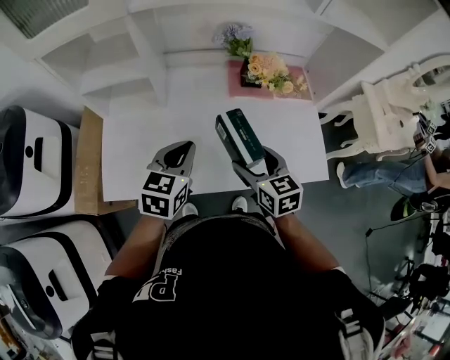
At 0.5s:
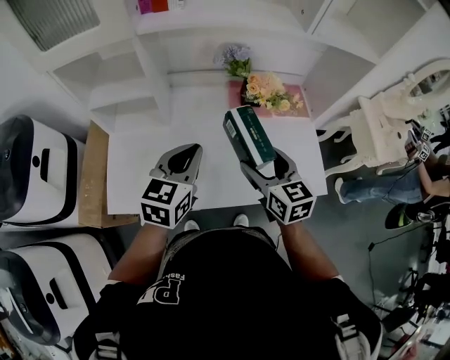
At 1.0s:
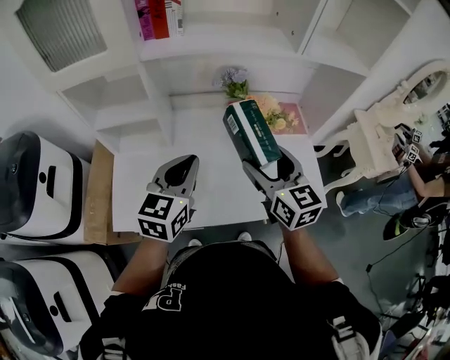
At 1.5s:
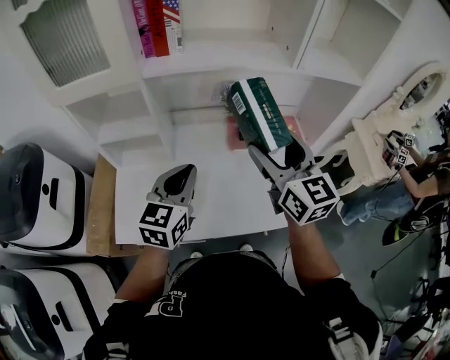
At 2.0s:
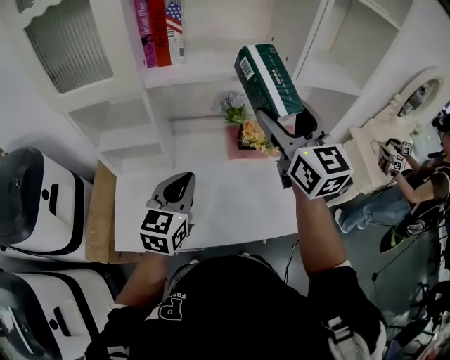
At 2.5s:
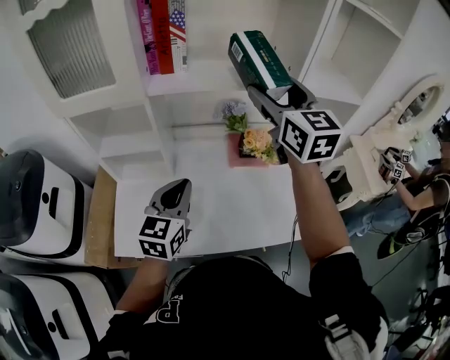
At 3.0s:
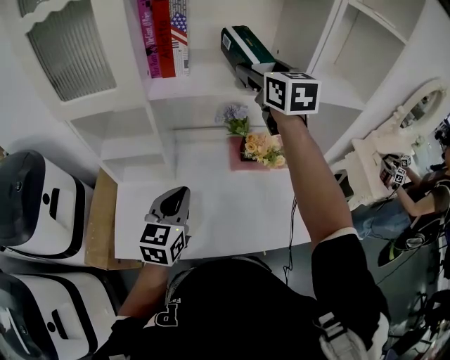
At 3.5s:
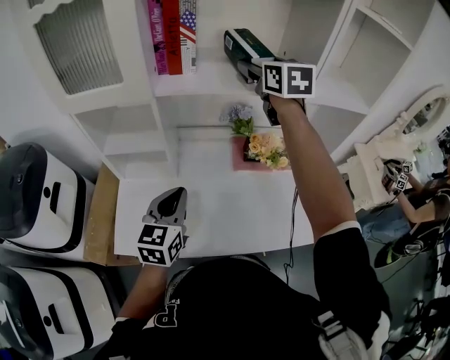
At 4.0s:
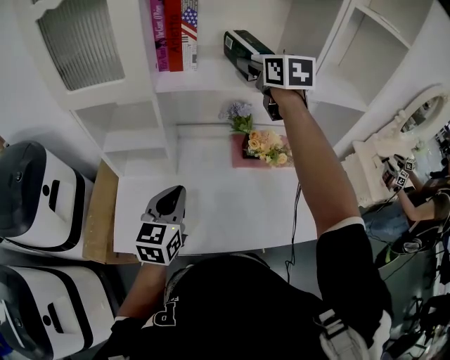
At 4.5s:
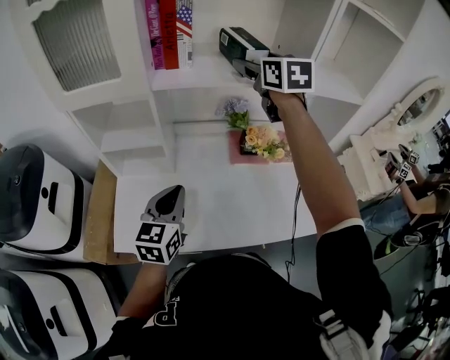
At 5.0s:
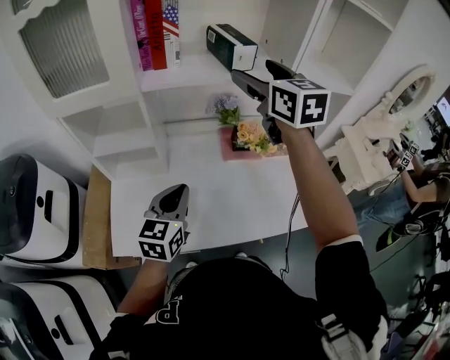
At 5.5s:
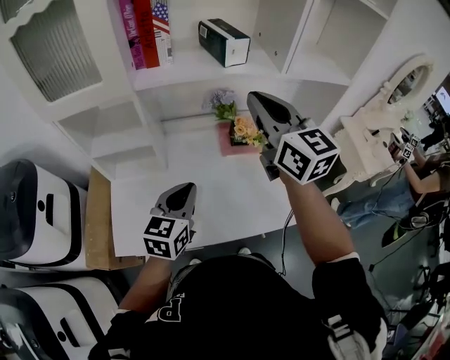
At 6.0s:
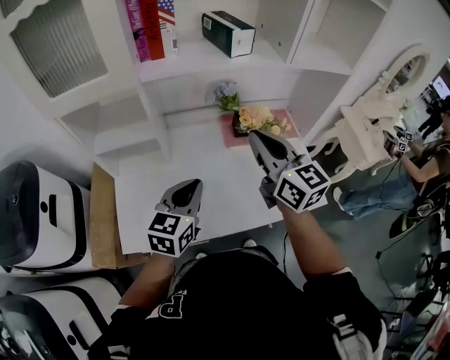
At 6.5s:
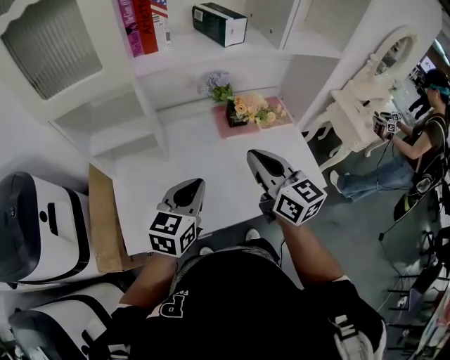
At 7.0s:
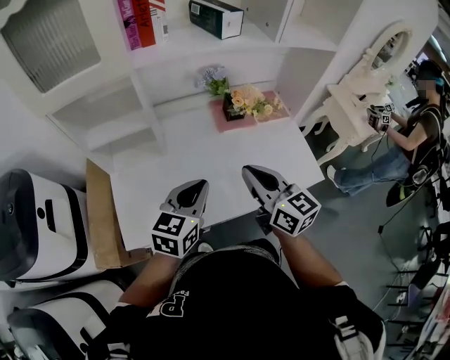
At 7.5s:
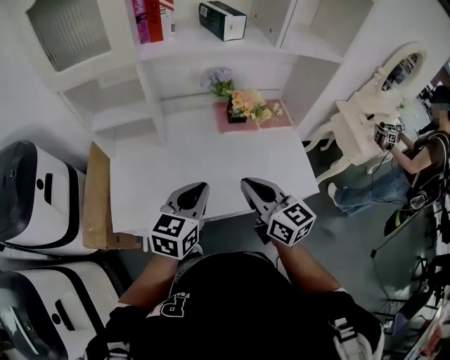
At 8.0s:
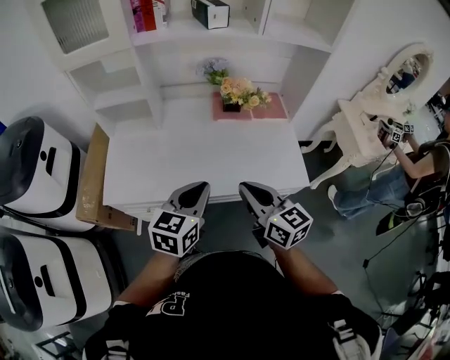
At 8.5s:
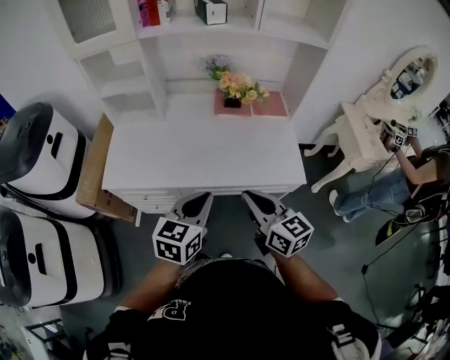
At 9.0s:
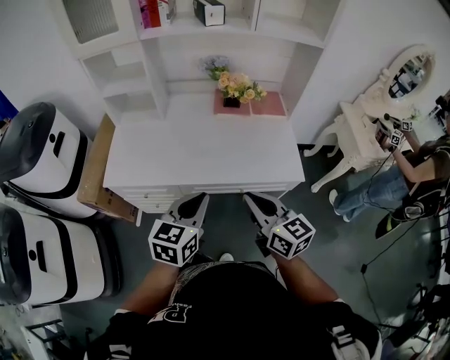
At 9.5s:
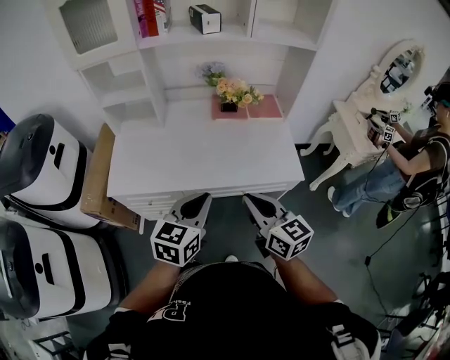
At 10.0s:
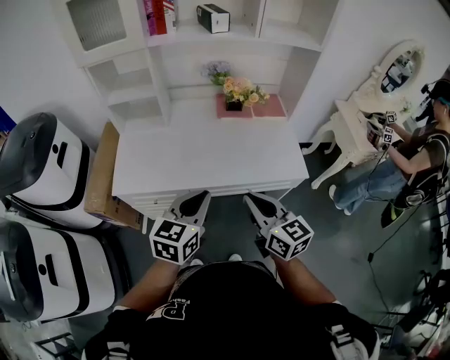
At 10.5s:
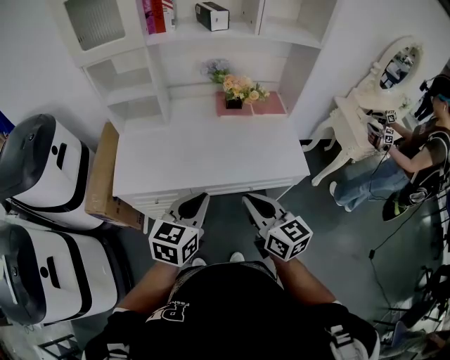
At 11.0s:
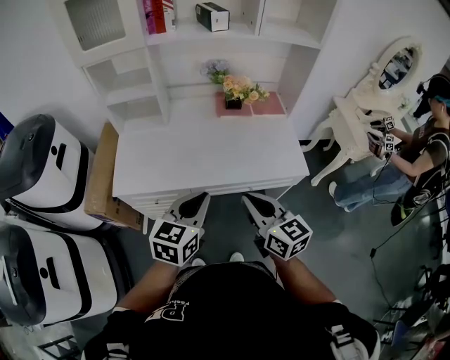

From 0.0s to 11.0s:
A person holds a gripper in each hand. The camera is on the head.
From 0.0s to 2.0s: The right gripper travels upward by roughly 35 cm, and tilts its fingers approximately 40 degrees upward, while the left gripper moves upward, some 10 cm.
From 2.0s to 3.5s: The right gripper moves forward, some 20 cm.
From 3.5s to 5.5s: The left gripper moves approximately 5 cm. Meanwhile the right gripper travels backward by about 20 cm, and closes.
From 5.5s to 7.5s: The right gripper moves backward and downward, about 30 cm, and rotates approximately 20 degrees; the left gripper shifts some 10 cm backward.
From 7.5s to 9.0s: Both grippers move backward and to the right, about 20 cm.
From 9.0s to 11.0s: The grippers both shift to the left by about 5 cm.

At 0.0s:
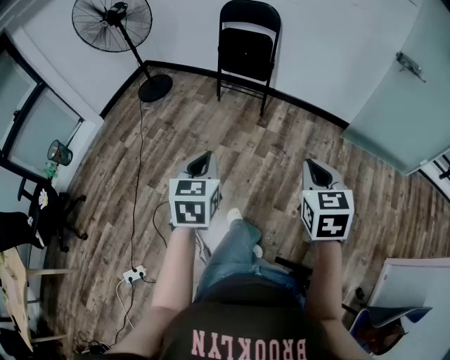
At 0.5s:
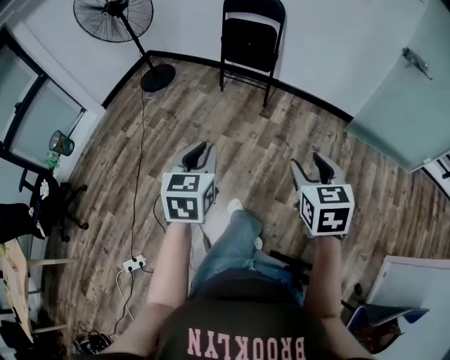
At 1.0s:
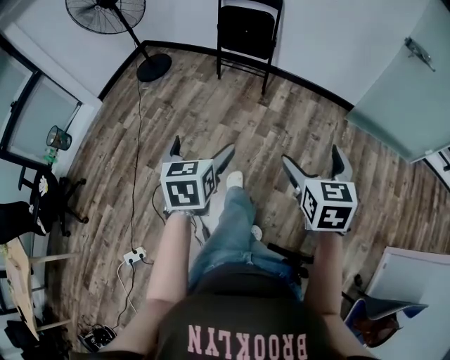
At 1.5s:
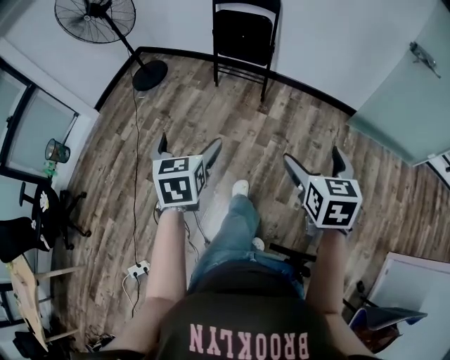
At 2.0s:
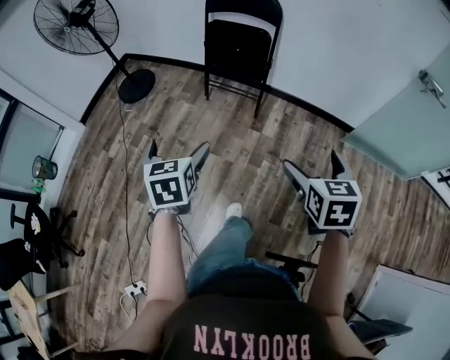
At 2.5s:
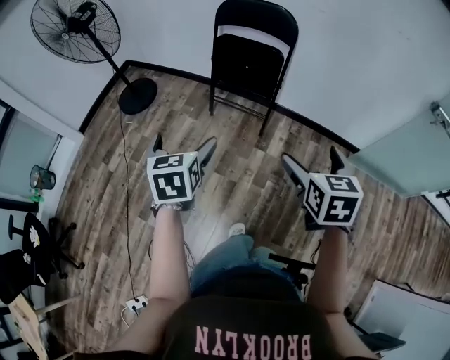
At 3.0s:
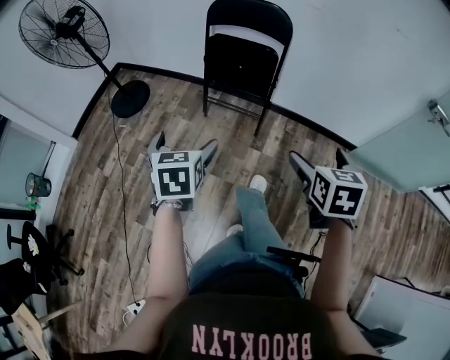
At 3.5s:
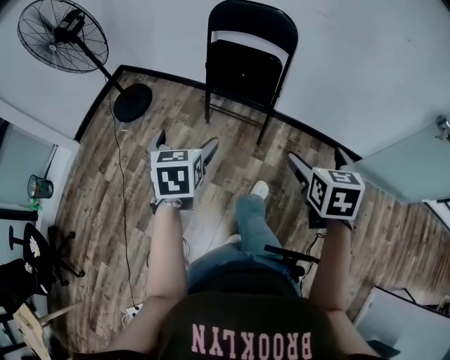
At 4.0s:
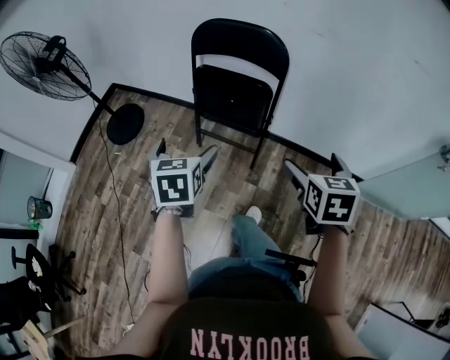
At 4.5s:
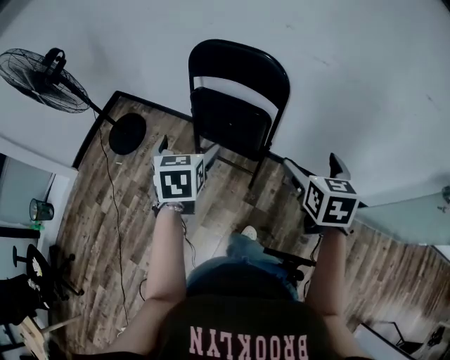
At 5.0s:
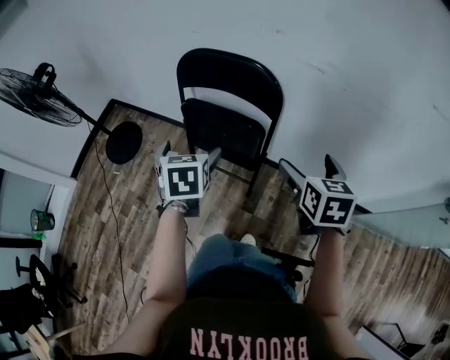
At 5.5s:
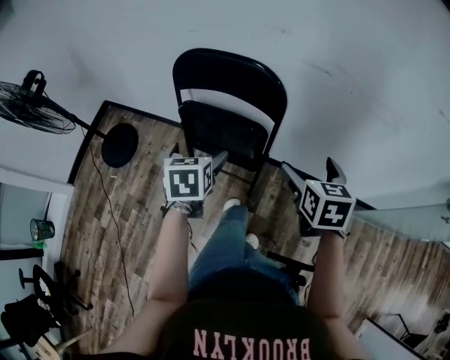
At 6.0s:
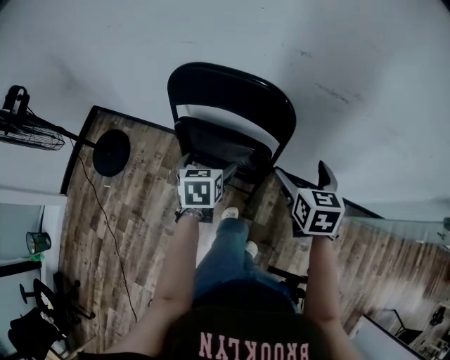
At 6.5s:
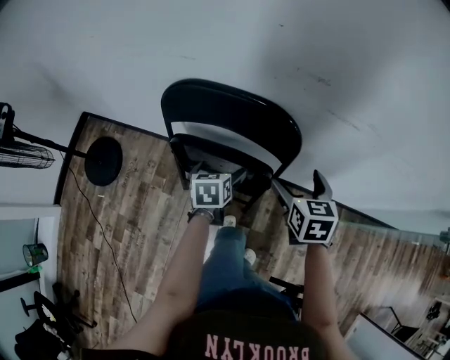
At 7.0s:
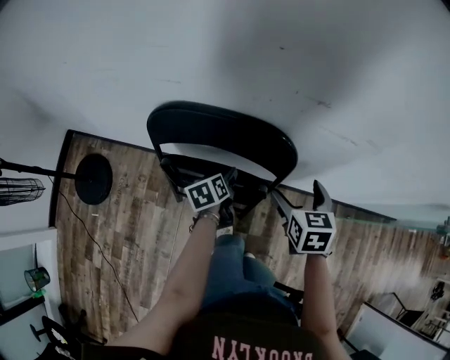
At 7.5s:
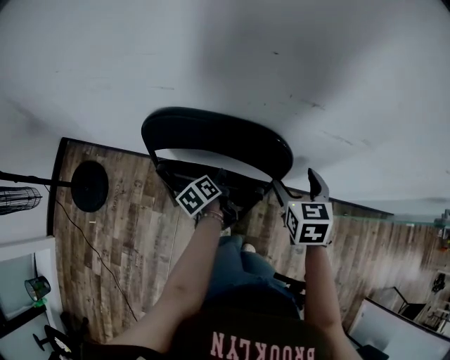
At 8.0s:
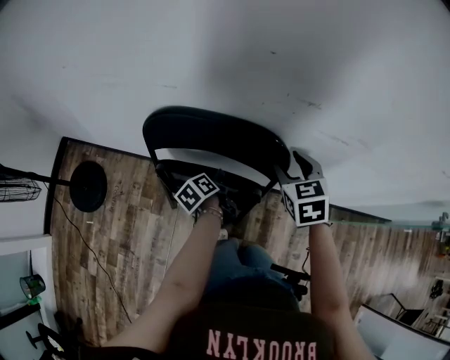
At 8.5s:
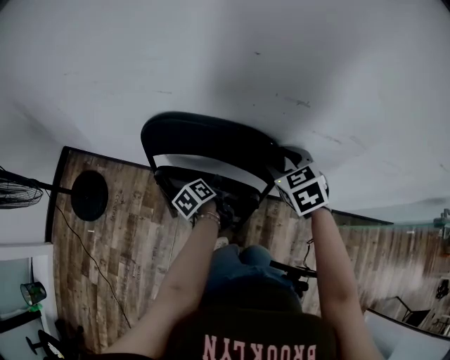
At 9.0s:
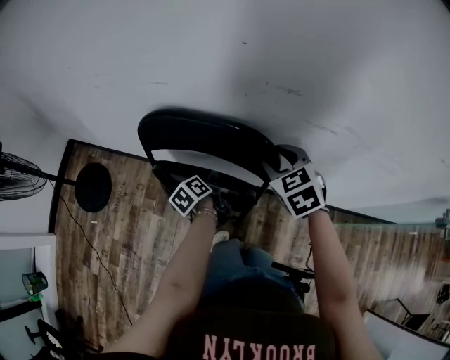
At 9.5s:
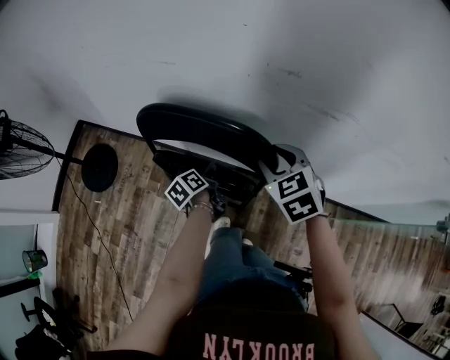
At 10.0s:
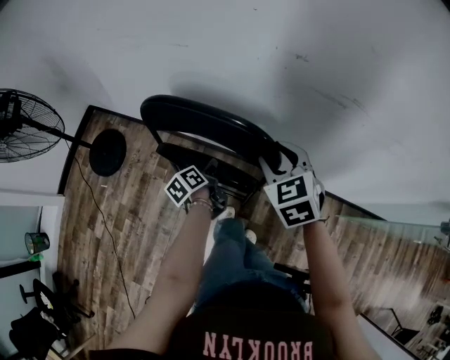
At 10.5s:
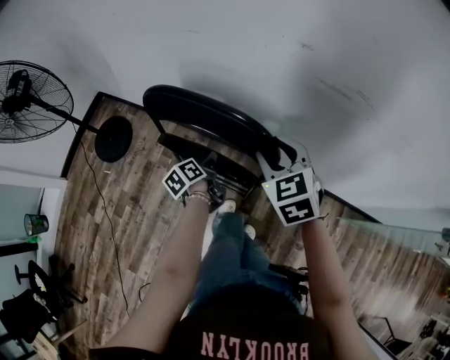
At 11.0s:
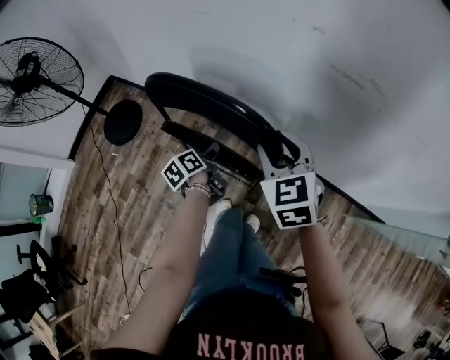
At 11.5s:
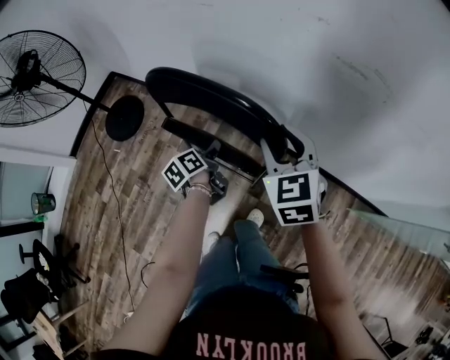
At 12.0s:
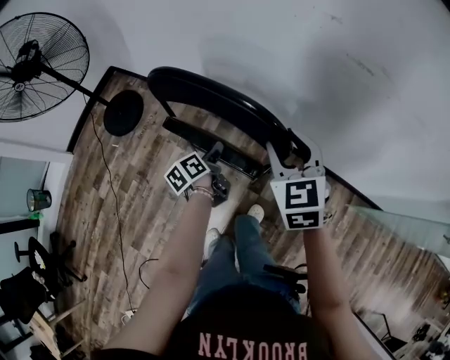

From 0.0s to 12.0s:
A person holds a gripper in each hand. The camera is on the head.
From 0.0s to 2.0s: Both grippers move forward, some 30 cm. The left gripper opens its fingers. Meanwhile the right gripper opens.
From 2.0s to 4.0s: The pair of grippers is taken forward, approximately 40 cm.
From 4.0s to 6.0s: Both grippers travel together forward, approximately 30 cm.
From 6.0s to 8.0s: The right gripper shifts approximately 15 cm forward, and closes its fingers; the left gripper shifts some 15 cm forward and downward, rotates around the line of its fingers by approximately 50 degrees, counterclockwise from behind, and closes.
From 8.0s to 10.0s: The two grippers go about 10 cm backward.
From 10.0s to 12.0s: The left gripper goes approximately 10 cm backward and to the left. Meanwhile the right gripper is displaced backward by approximately 10 cm.

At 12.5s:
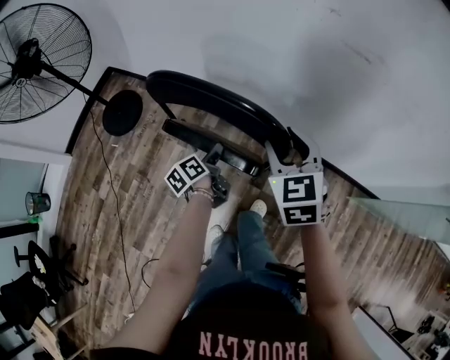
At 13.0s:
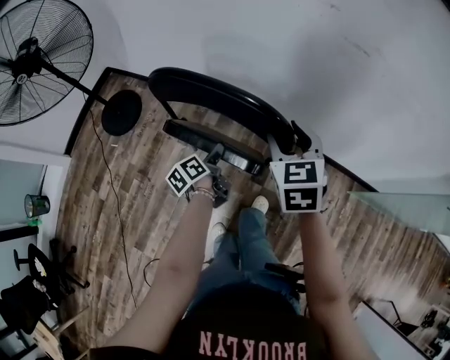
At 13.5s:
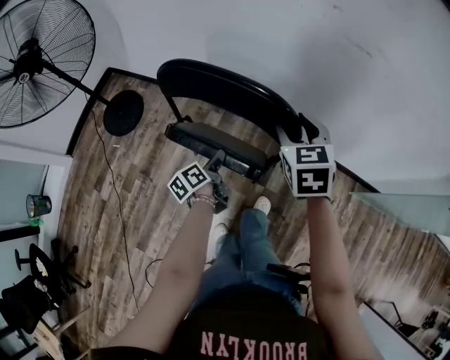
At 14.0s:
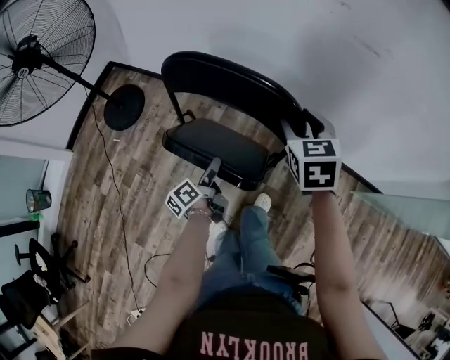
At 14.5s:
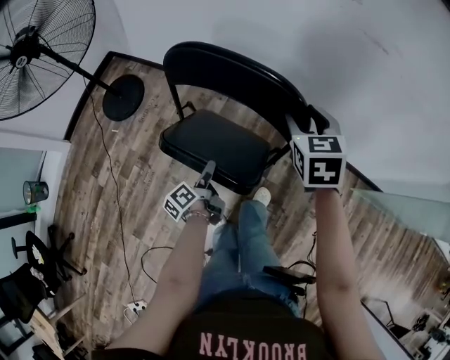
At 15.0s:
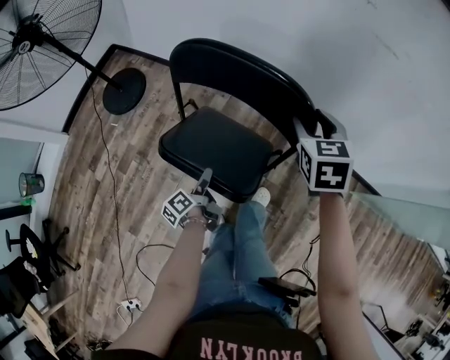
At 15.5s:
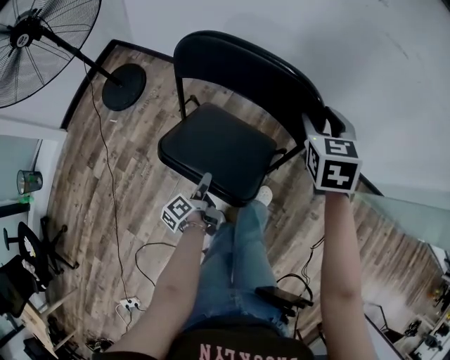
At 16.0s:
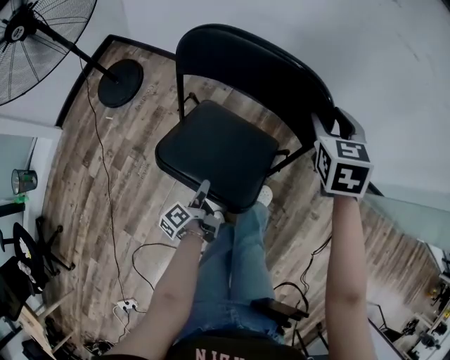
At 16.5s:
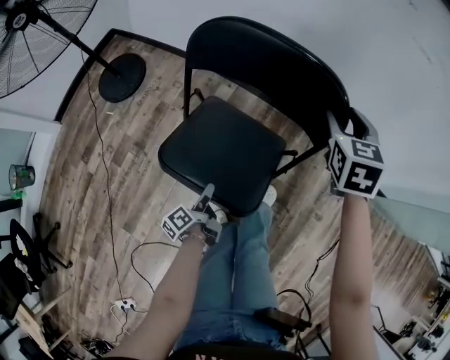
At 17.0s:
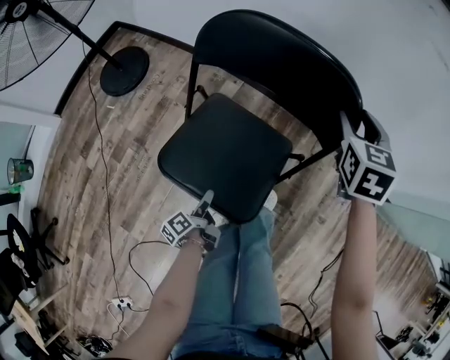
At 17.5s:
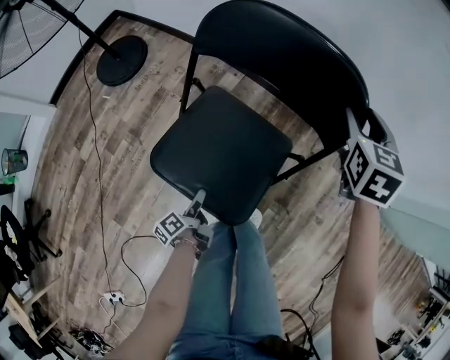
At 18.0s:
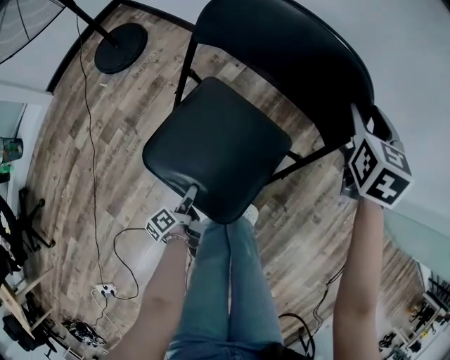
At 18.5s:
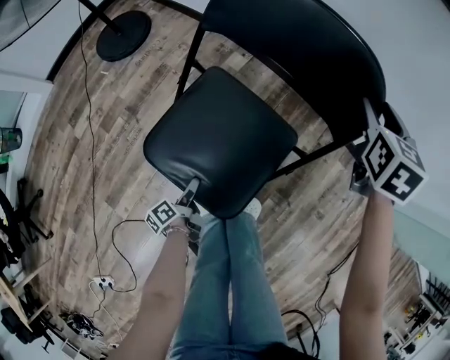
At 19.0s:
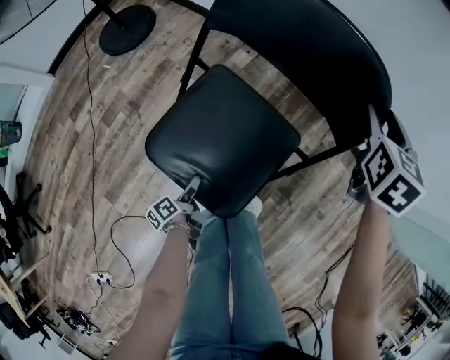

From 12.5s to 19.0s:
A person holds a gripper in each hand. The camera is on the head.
From 12.5s to 14.5s: The right gripper ends up roughly 5 cm from where it was; the left gripper heads backward and downward, covering approximately 15 cm.
From 14.5s to 17.0s: The left gripper travels downward and backward by roughly 20 cm. Meanwhile the right gripper goes approximately 10 cm downward.
From 17.0s to 19.0s: The right gripper moves downward, approximately 10 cm, while the left gripper goes approximately 15 cm downward and backward.
